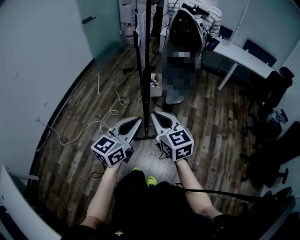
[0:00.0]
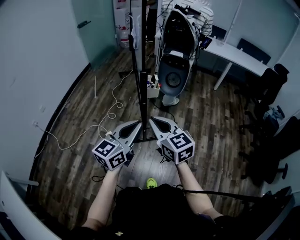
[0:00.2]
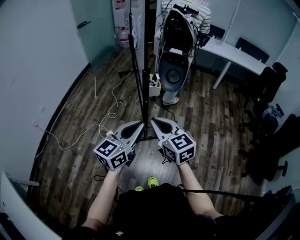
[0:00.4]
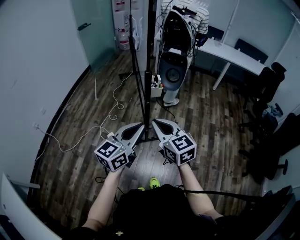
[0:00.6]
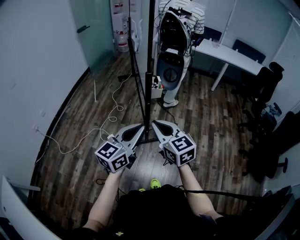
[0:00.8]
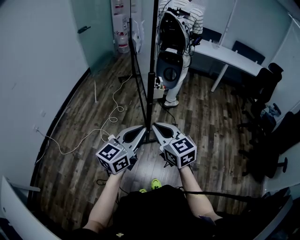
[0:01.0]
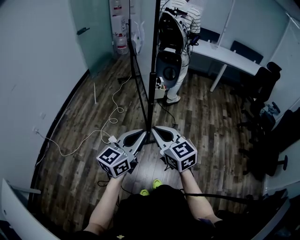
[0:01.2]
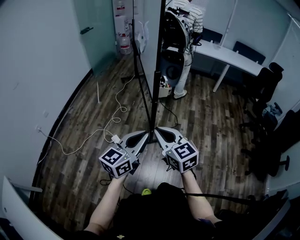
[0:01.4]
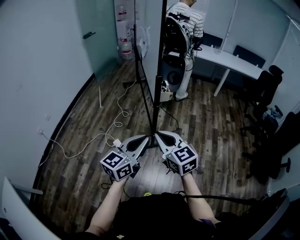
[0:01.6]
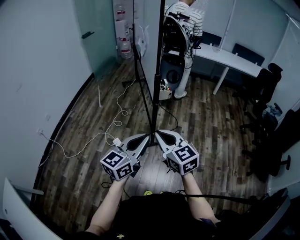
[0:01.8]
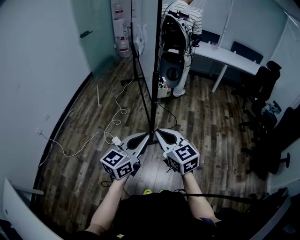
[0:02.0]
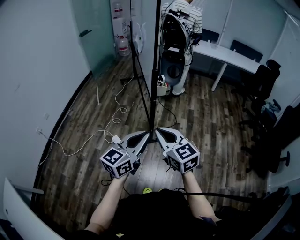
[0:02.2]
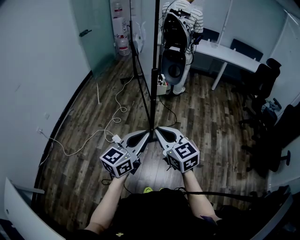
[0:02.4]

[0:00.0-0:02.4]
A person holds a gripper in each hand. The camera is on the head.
0:00.0 to 0:01.2: The grippers both shift backward by some 10 cm.
0:01.2 to 0:02.4: The grippers move only a little.

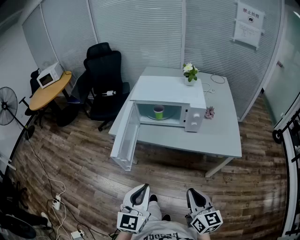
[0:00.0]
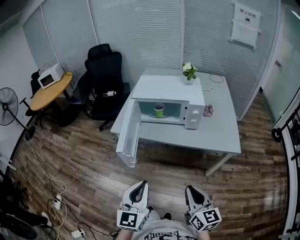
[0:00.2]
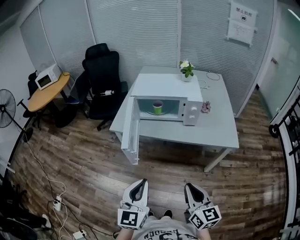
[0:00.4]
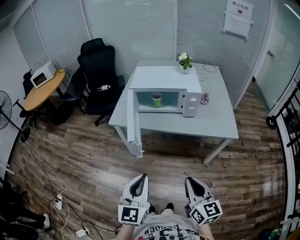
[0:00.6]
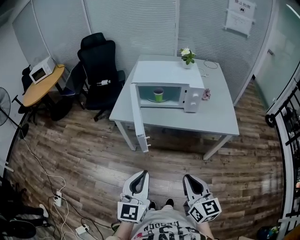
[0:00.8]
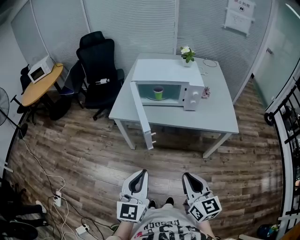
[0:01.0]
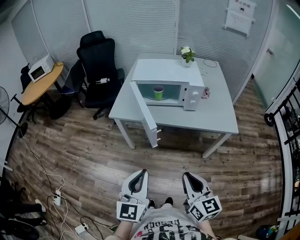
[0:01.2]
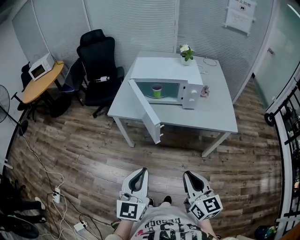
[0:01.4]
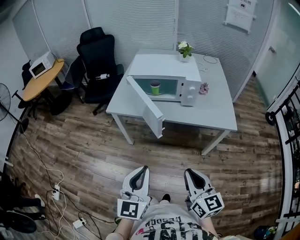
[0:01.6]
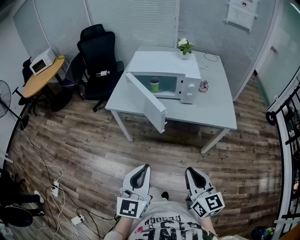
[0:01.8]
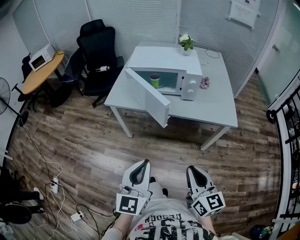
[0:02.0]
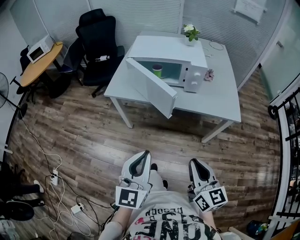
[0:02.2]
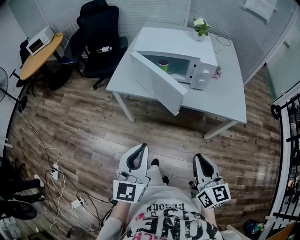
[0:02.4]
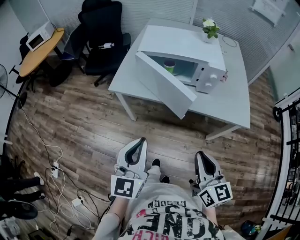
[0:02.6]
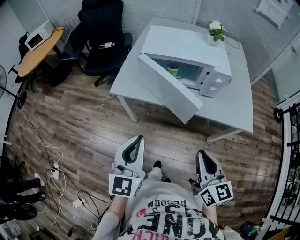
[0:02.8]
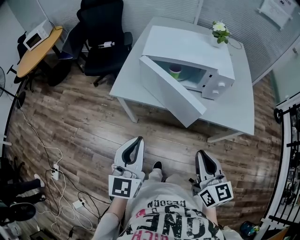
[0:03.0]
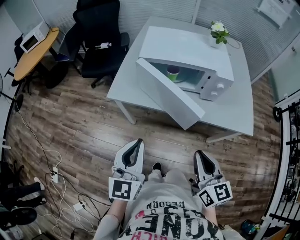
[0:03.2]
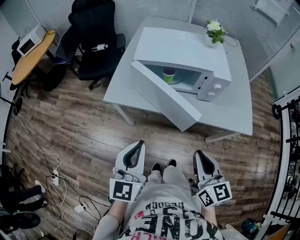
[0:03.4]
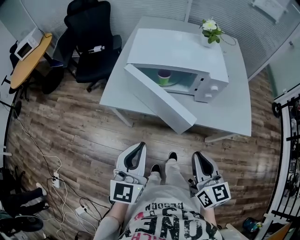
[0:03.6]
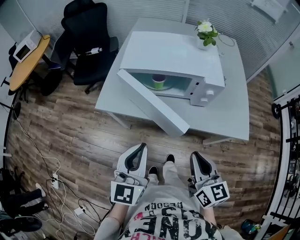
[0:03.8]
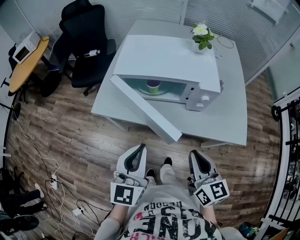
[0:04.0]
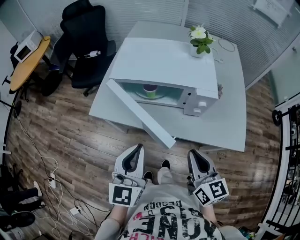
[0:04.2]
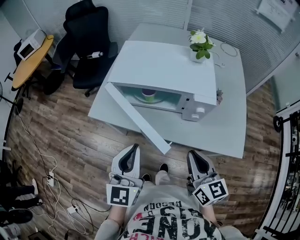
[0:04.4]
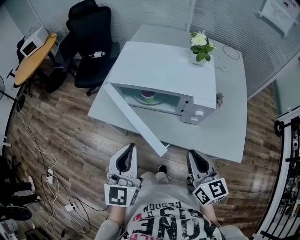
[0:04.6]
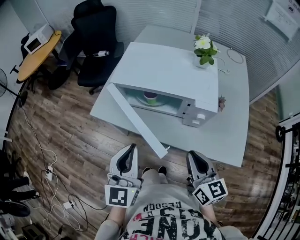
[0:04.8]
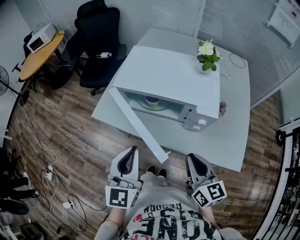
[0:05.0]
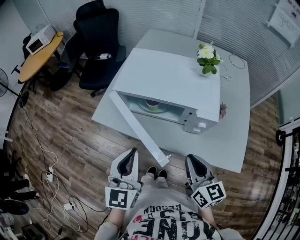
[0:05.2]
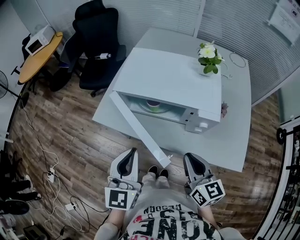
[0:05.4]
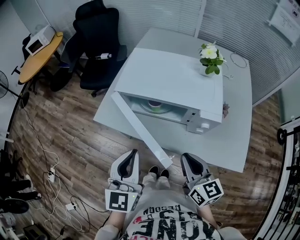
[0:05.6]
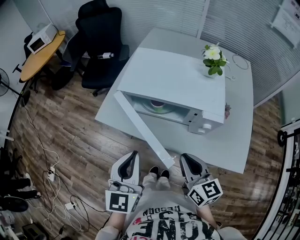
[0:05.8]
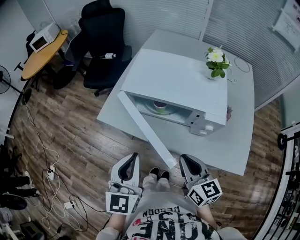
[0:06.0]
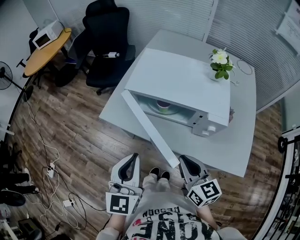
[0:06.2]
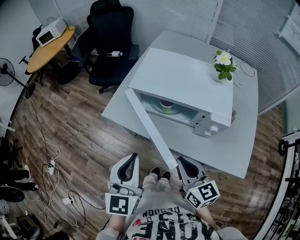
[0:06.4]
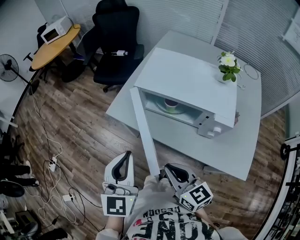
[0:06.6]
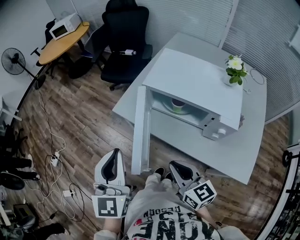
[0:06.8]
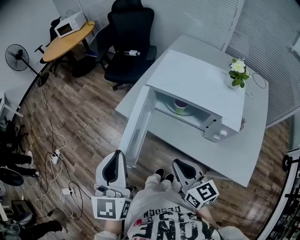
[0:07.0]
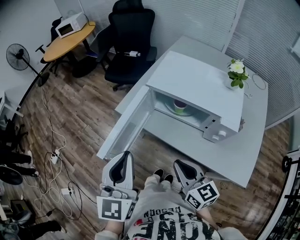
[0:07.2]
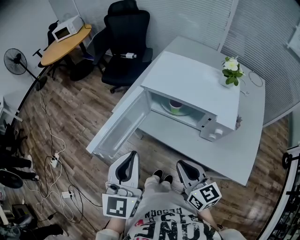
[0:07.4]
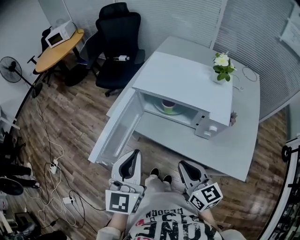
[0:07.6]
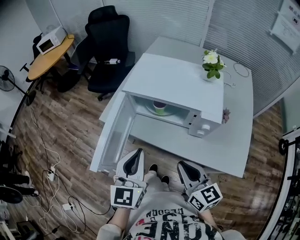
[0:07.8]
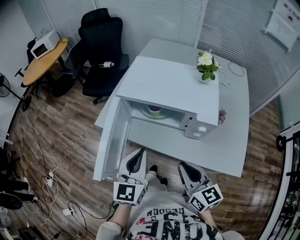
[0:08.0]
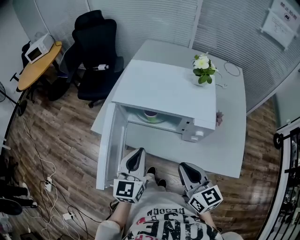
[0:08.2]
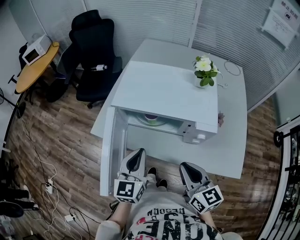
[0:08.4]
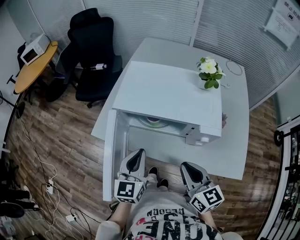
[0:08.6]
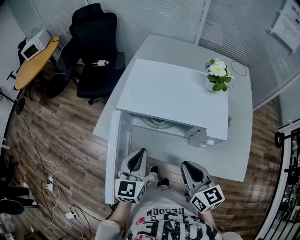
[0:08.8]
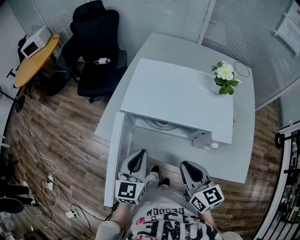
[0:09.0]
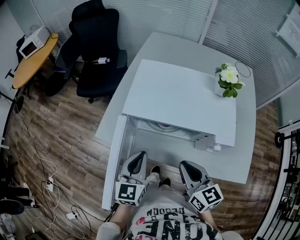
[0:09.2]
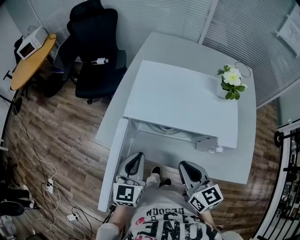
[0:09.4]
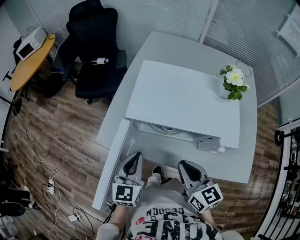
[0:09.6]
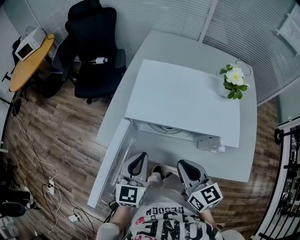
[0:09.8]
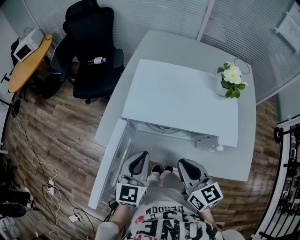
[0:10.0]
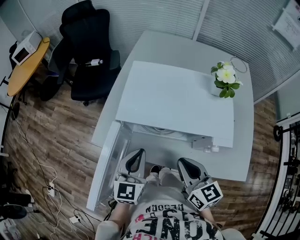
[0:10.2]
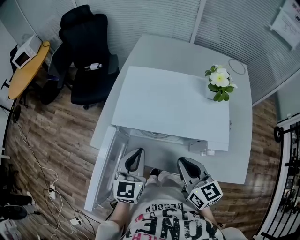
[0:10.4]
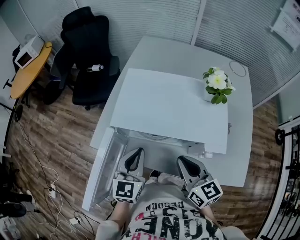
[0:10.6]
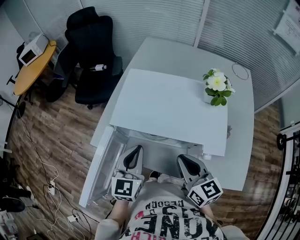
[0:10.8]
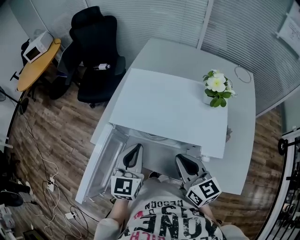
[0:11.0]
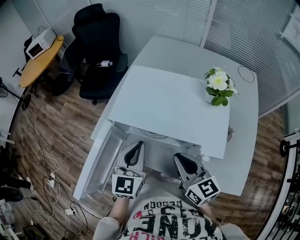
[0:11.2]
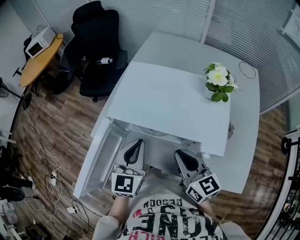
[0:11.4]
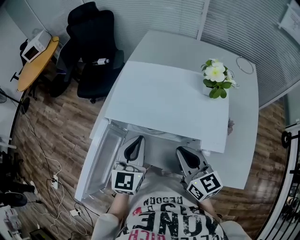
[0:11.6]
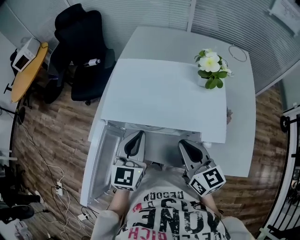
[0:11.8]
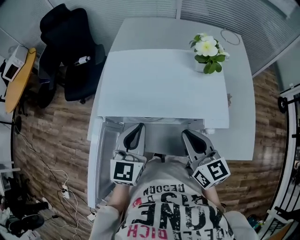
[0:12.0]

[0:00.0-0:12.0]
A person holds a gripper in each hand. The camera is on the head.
0:00.0 to 0:01.6: The two grippers go some 5 cm backward.
0:01.6 to 0:03.0: The left gripper heads forward and to the left, covering roughly 20 cm. The right gripper heads forward, covering roughly 15 cm.
0:03.0 to 0:04.4: The left gripper is displaced to the right and forward by roughly 15 cm. The right gripper moves forward and to the right, roughly 15 cm.
0:04.4 to 0:06.0: The right gripper shifts roughly 5 cm forward.
0:06.0 to 0:07.6: The left gripper moves approximately 10 cm to the left and comes back, while the right gripper travels to the left and back again, some 10 cm each way.
0:07.6 to 0:09.0: The right gripper heads forward, covering about 10 cm. Meanwhile the left gripper moves forward and downward, approximately 20 cm.
0:09.0 to 0:10.4: The grippers both shift forward by roughly 5 cm.
0:10.4 to 0:12.0: The left gripper shifts by approximately 5 cm.

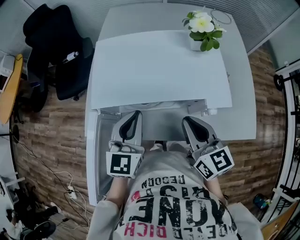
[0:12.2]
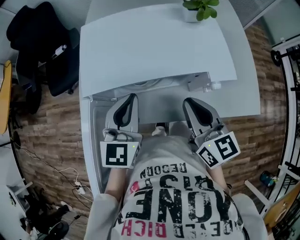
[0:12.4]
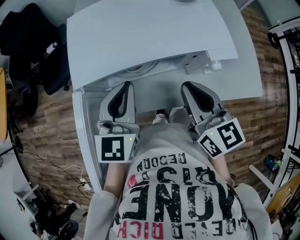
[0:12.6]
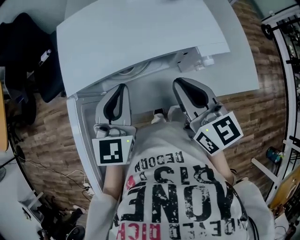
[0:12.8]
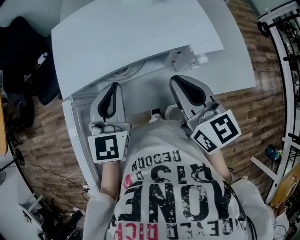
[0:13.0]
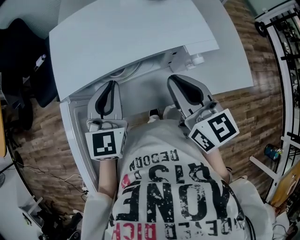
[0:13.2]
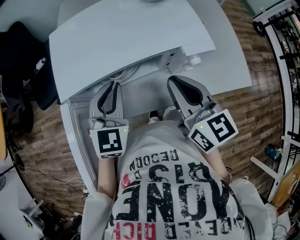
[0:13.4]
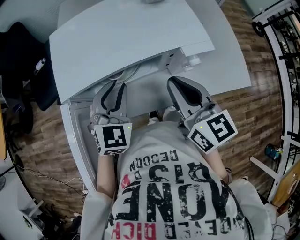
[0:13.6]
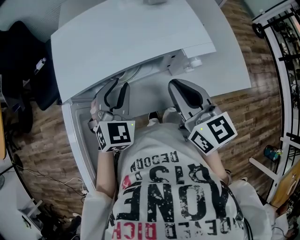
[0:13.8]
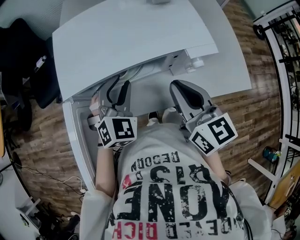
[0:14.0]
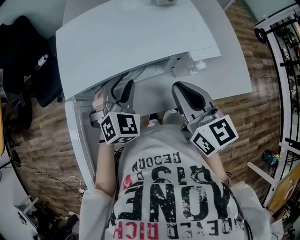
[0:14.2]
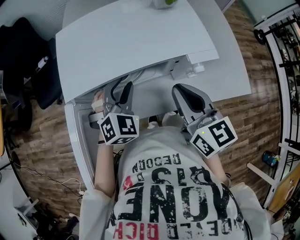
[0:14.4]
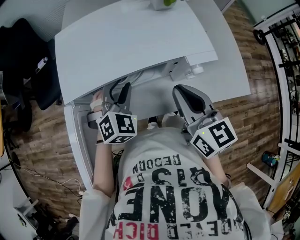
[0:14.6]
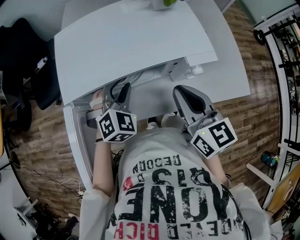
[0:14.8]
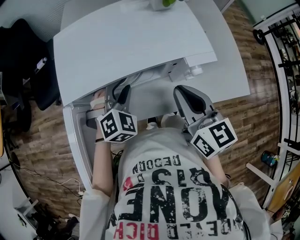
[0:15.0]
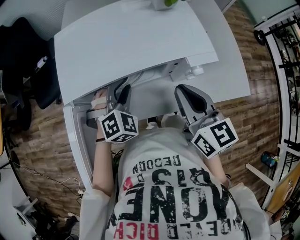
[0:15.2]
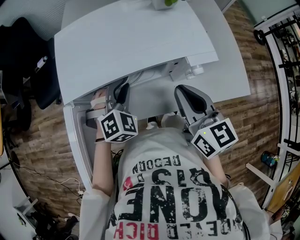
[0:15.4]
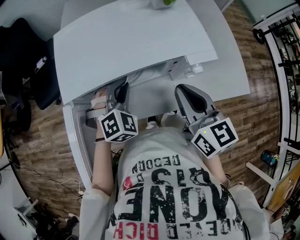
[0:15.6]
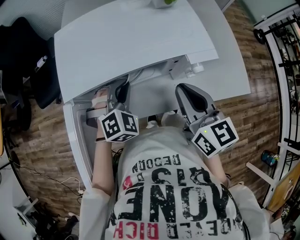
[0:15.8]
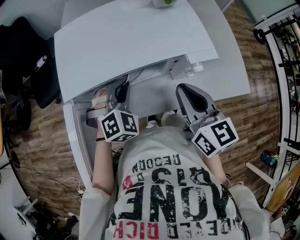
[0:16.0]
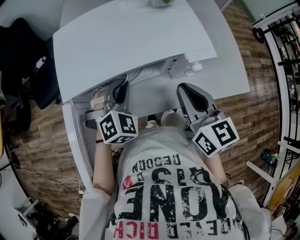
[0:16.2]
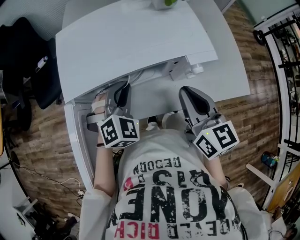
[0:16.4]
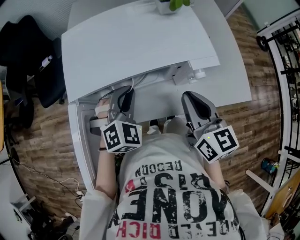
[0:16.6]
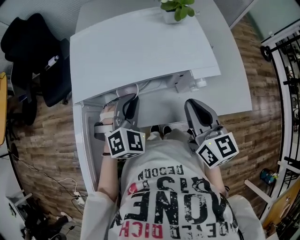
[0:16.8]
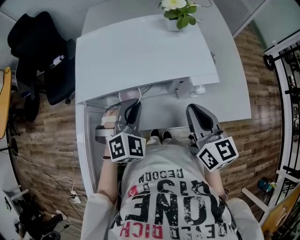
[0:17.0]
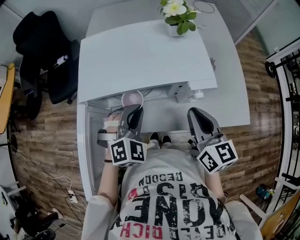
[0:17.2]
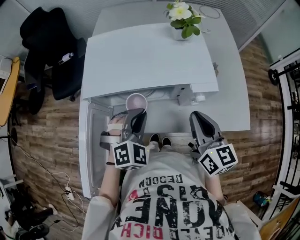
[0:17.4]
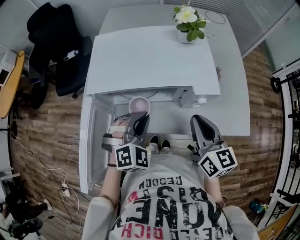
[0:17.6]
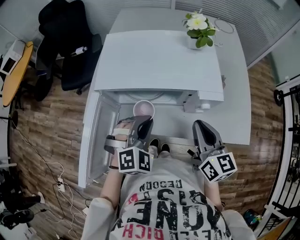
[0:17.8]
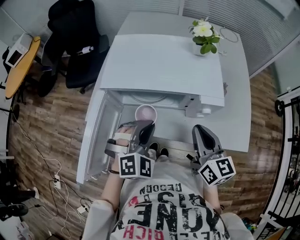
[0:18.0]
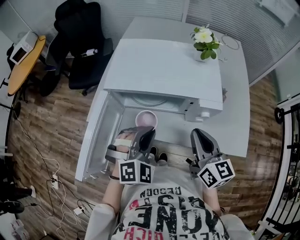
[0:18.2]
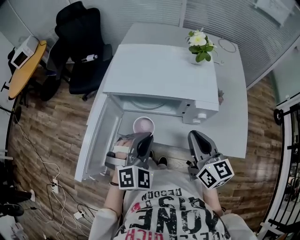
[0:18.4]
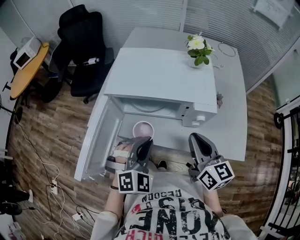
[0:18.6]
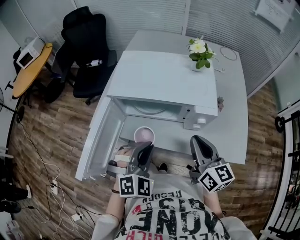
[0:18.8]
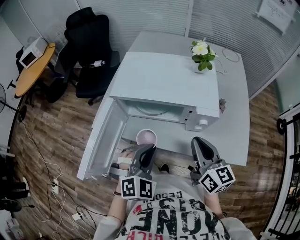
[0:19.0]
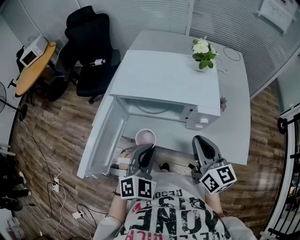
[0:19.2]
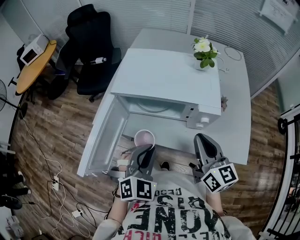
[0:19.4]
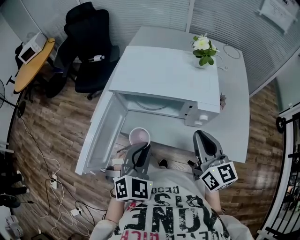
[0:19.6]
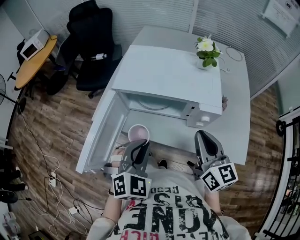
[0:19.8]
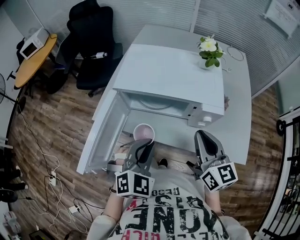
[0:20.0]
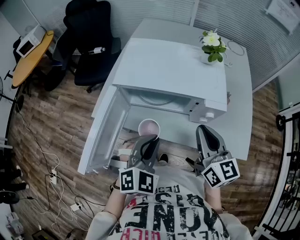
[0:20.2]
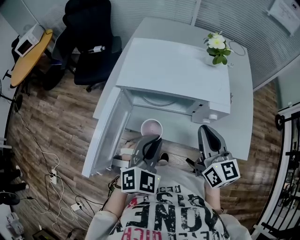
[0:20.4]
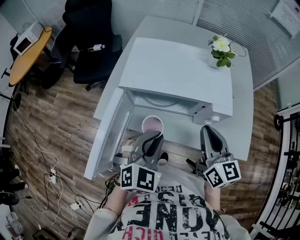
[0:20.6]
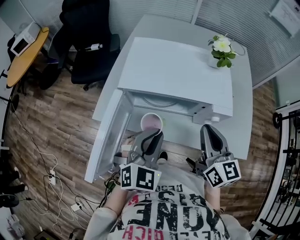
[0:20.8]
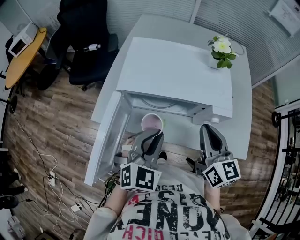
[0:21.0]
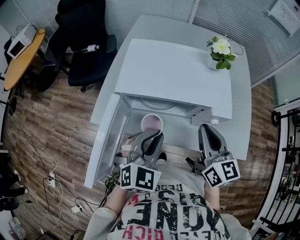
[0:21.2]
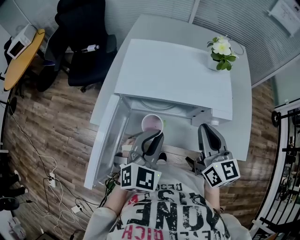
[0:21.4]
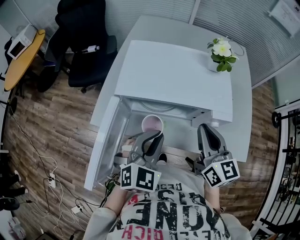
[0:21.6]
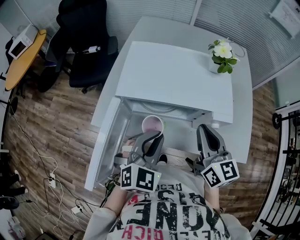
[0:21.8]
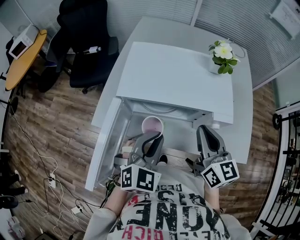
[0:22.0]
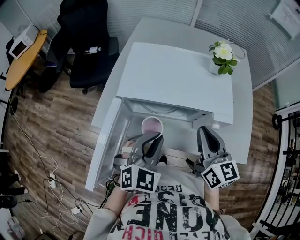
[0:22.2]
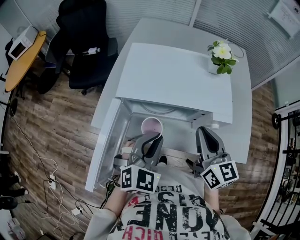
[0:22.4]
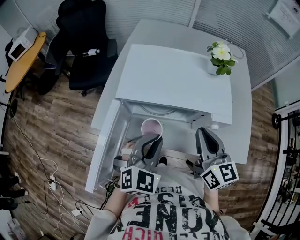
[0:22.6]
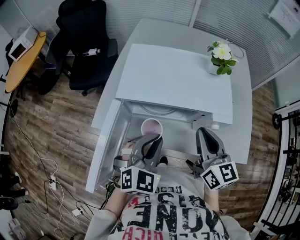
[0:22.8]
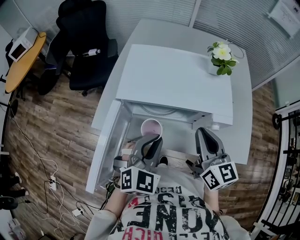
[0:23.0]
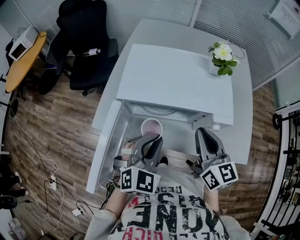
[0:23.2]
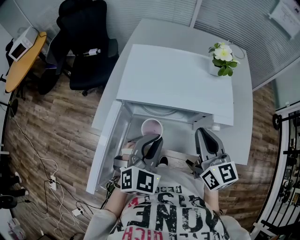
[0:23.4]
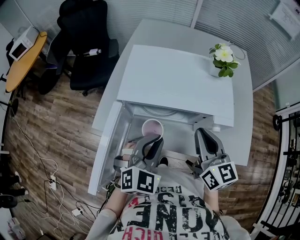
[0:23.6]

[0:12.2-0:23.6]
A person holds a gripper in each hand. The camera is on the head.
0:12.2 to 0:13.6: The left gripper heads downward, covering roughly 5 cm, and changes its angle by roughly 30 degrees.
0:13.6 to 0:15.0: The left gripper moves downward, roughly 5 cm, and swivels roughly 30 degrees.
0:15.0 to 0:16.4: The left gripper closes up.
0:16.4 to 0:17.8: The left gripper heads backward, covering about 10 cm.
0:17.8 to 0:19.4: The left gripper goes approximately 10 cm backward.
0:19.4 to 0:20.8: The right gripper moves about 5 cm. The left gripper shifts roughly 5 cm forward.
0:20.8 to 0:22.2: The grippers make only small movements.
0:22.2 to 0:23.6: The two grippers keep their place.
